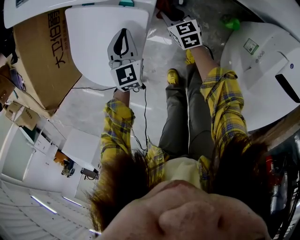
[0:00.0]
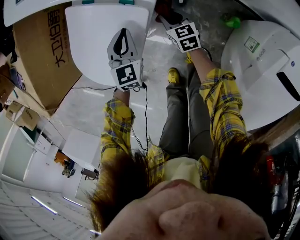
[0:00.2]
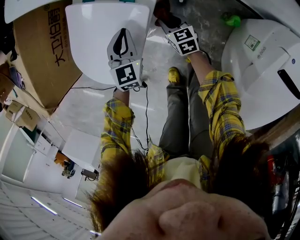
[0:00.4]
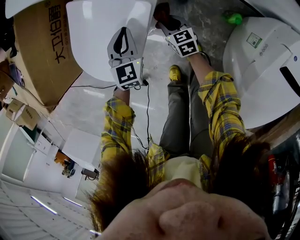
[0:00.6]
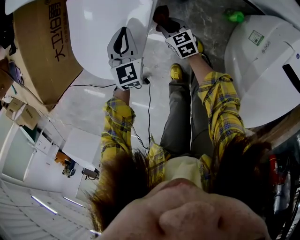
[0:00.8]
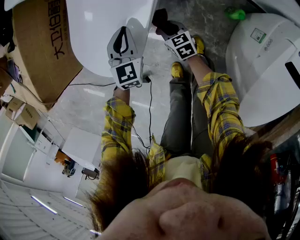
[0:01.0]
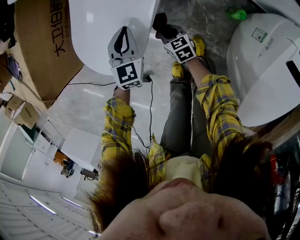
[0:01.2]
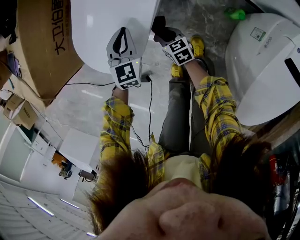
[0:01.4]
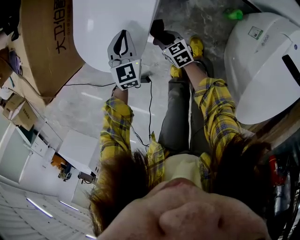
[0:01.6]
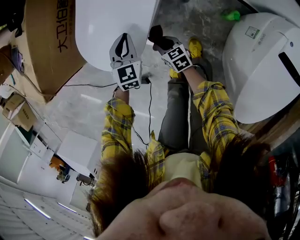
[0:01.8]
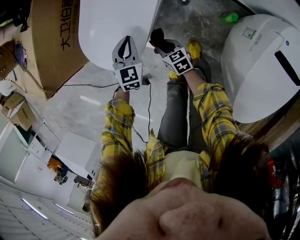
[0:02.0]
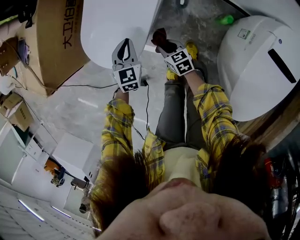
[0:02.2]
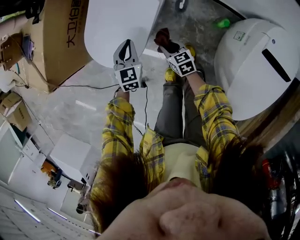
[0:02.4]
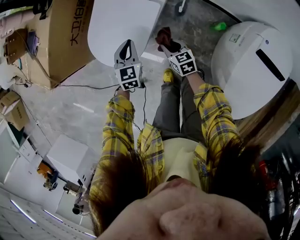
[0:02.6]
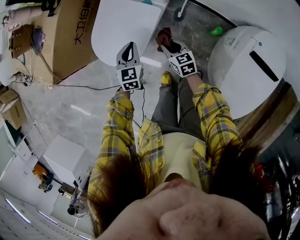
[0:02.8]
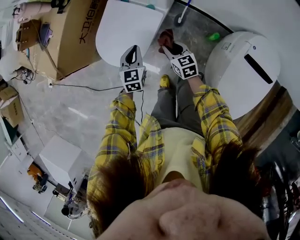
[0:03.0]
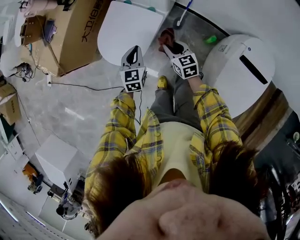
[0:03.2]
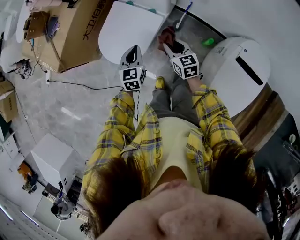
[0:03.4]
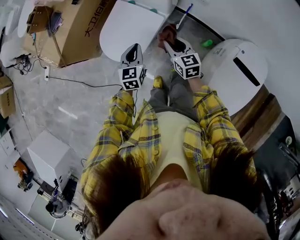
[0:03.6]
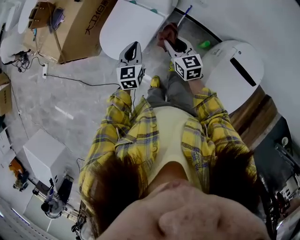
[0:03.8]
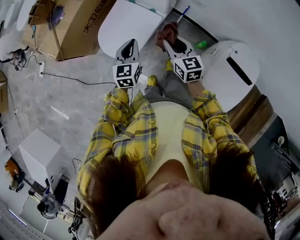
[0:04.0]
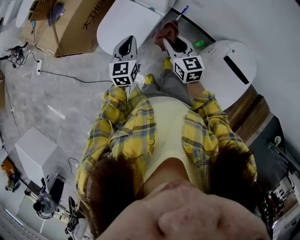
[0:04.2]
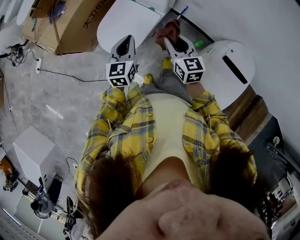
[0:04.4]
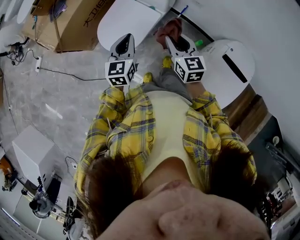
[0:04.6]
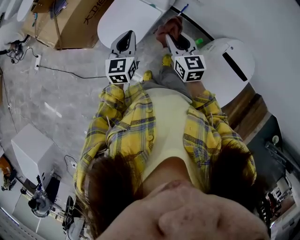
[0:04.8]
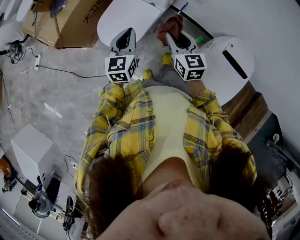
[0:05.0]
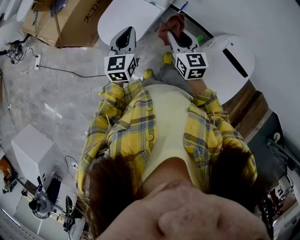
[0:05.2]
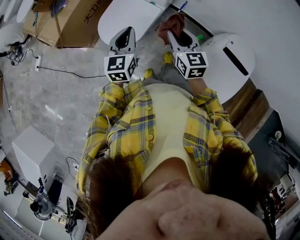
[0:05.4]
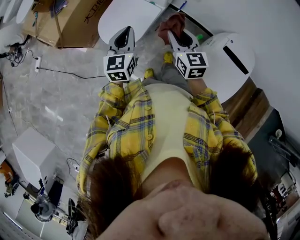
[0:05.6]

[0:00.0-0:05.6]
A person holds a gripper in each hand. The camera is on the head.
0.0 to 1.4 s: The right gripper is displaced to the left and backward by some 20 cm. The left gripper heads to the left, covering some 5 cm.
1.4 to 2.8 s: The right gripper heads upward, covering approximately 20 cm; the left gripper goes some 10 cm upward and backward.
2.8 to 4.2 s: Both grippers move upward, some 25 cm.
4.2 to 5.6 s: The left gripper goes about 5 cm upward, while the right gripper travels upward and backward by approximately 5 cm.

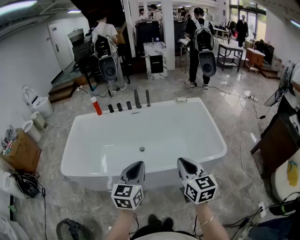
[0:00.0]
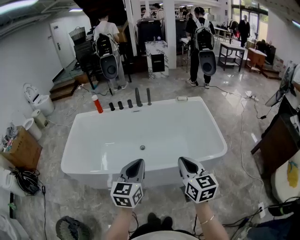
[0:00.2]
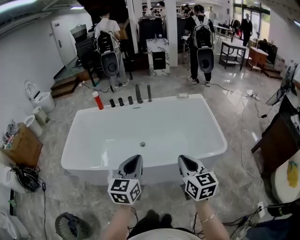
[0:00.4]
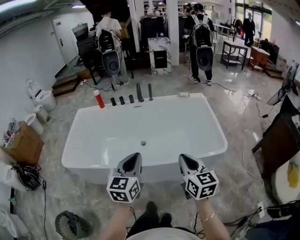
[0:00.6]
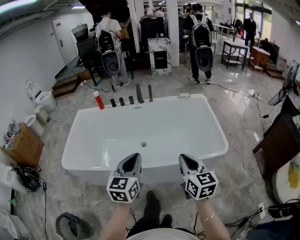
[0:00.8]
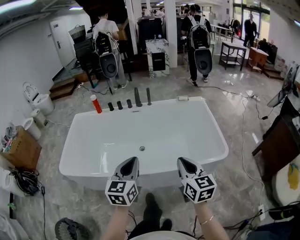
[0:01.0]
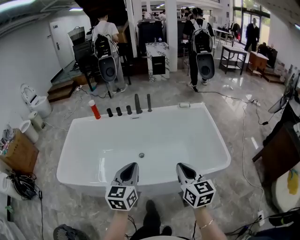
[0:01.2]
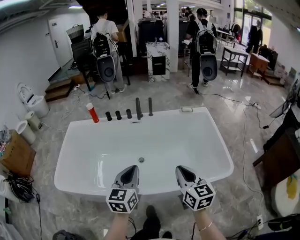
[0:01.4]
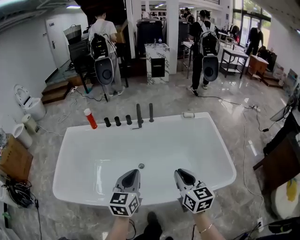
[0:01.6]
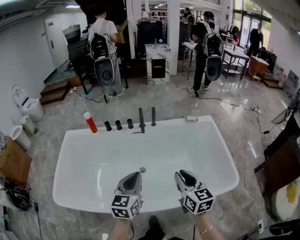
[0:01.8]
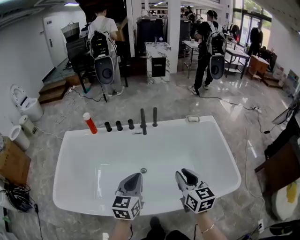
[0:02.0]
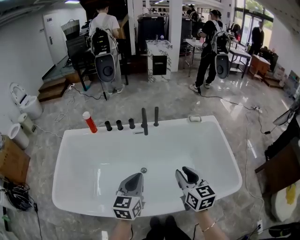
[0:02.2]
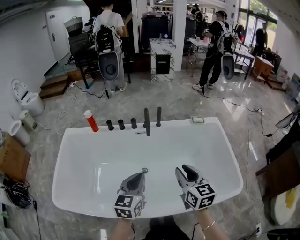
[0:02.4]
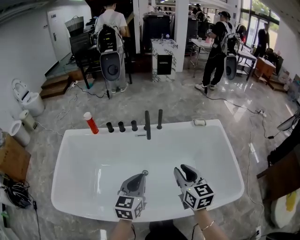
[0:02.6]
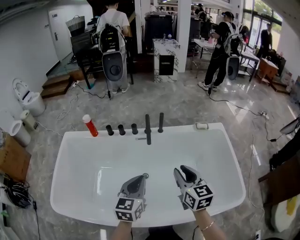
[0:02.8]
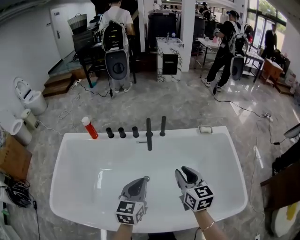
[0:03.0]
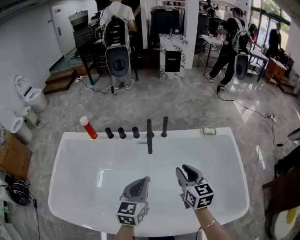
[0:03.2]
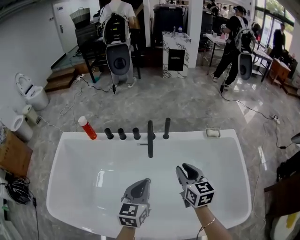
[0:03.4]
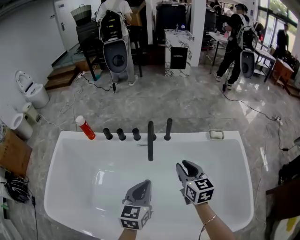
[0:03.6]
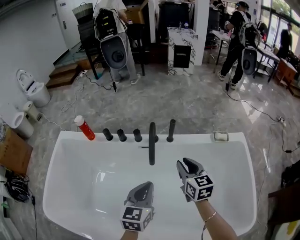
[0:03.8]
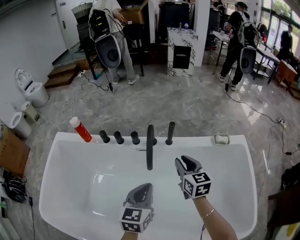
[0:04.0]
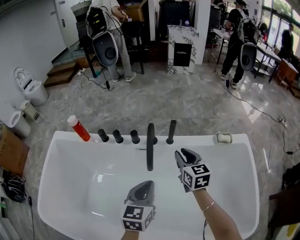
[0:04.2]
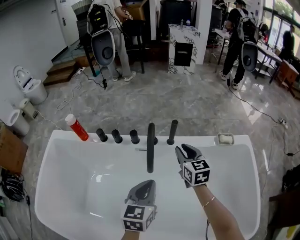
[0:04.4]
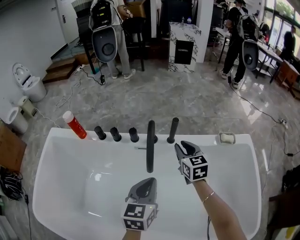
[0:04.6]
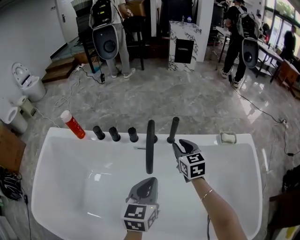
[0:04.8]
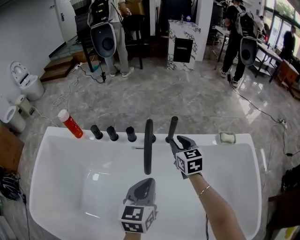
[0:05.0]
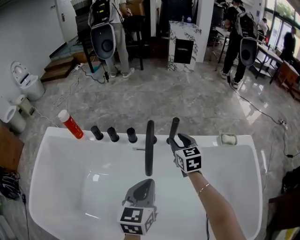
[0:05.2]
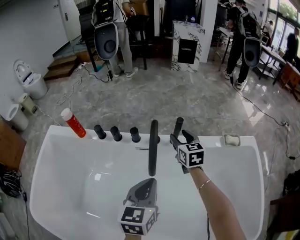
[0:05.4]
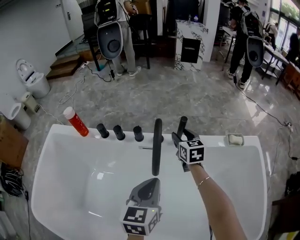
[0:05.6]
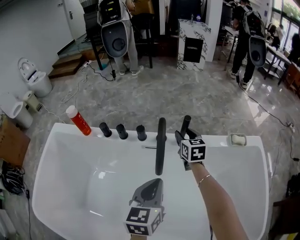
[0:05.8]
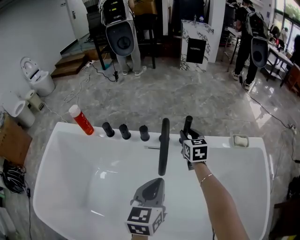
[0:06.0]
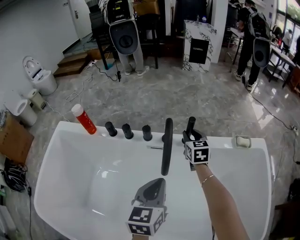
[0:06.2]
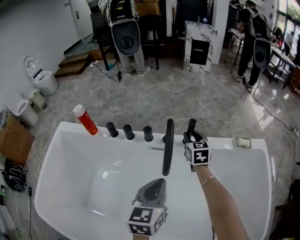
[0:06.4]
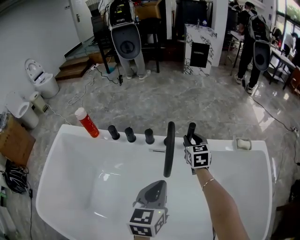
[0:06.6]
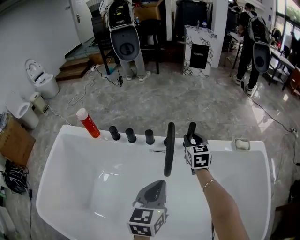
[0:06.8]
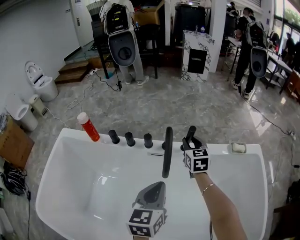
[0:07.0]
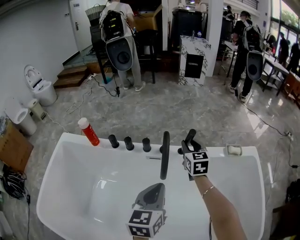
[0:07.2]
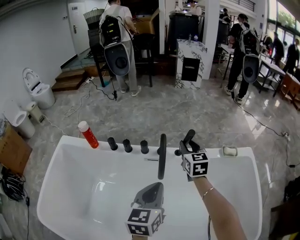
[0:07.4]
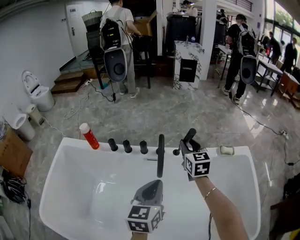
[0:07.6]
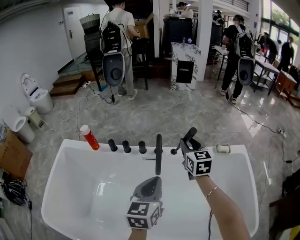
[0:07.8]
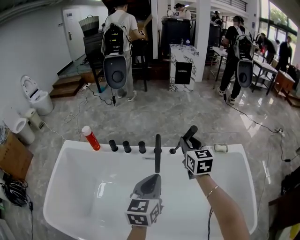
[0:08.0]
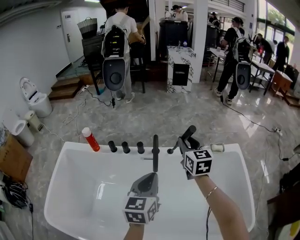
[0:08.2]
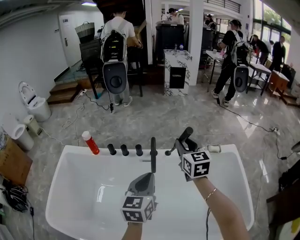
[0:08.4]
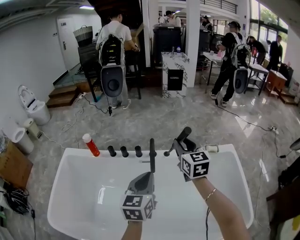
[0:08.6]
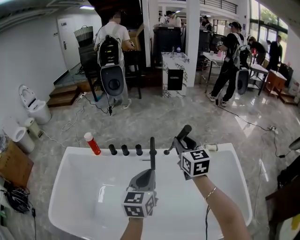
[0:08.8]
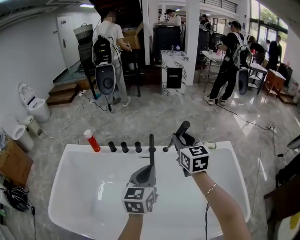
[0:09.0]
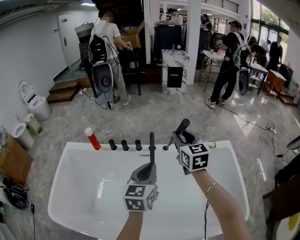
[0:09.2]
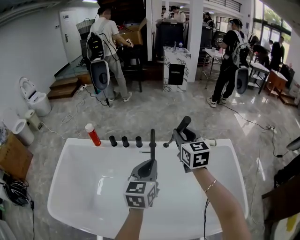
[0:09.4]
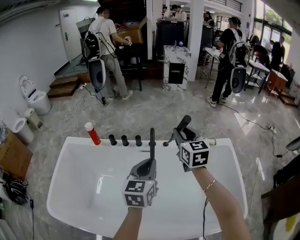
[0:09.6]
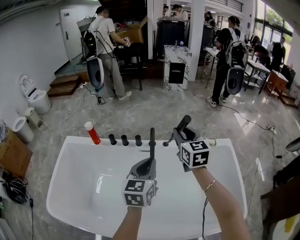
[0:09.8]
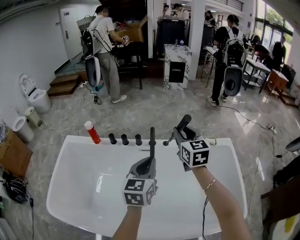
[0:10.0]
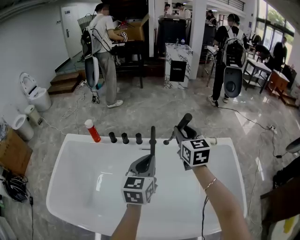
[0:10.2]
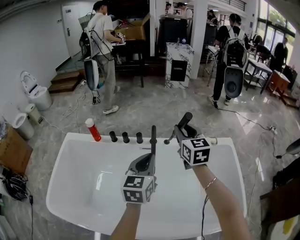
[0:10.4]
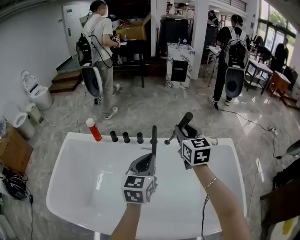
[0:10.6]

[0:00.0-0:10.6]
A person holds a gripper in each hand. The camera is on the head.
0.0 to 1.6 s: Both grippers travel together forward, approximately 30 cm.
1.6 to 3.0 s: Both grippers move forward, about 30 cm.
3.0 to 4.6 s: Both grippers travel together forward and downward, about 40 cm.
4.6 to 6.0 s: The right gripper heads forward and downward, covering some 10 cm, and opens, then closes once more.
6.0 to 7.6 s: The left gripper travels upward and backward by some 15 cm. The right gripper shifts approximately 20 cm upward and backward.
7.6 to 9.0 s: Both grippers travel together upward and backward, about 25 cm.
9.0 to 10.6 s: The grippers stay close to where they were, moving slightly.

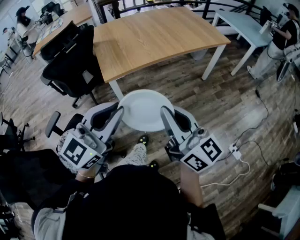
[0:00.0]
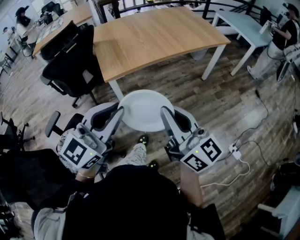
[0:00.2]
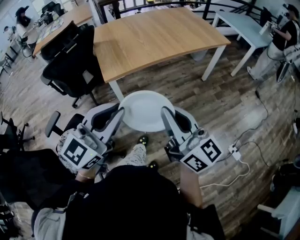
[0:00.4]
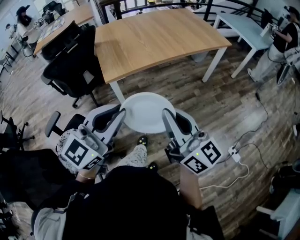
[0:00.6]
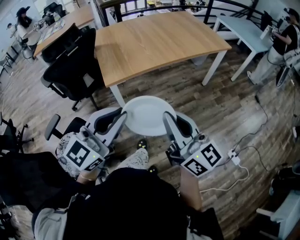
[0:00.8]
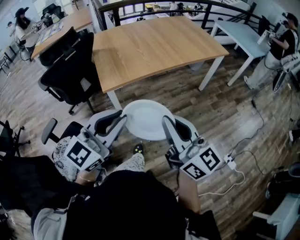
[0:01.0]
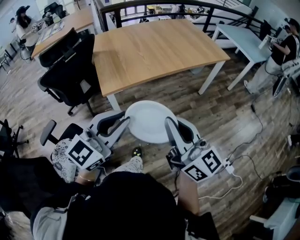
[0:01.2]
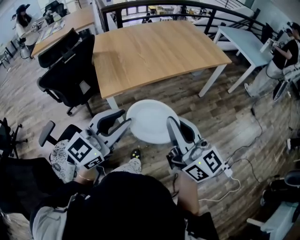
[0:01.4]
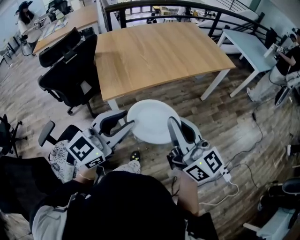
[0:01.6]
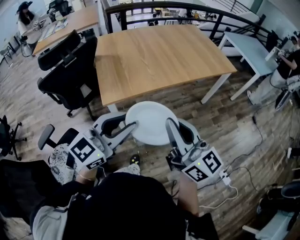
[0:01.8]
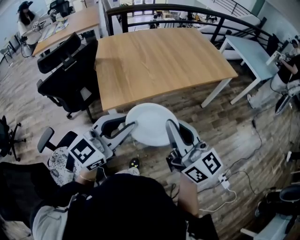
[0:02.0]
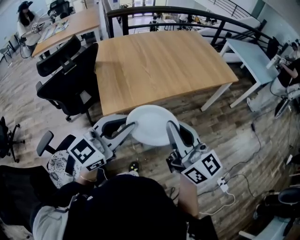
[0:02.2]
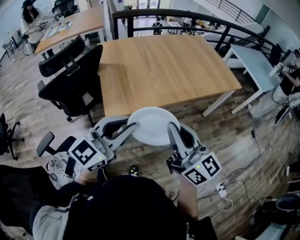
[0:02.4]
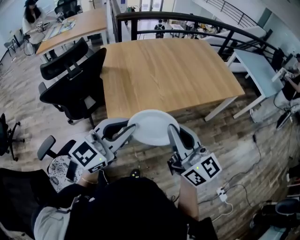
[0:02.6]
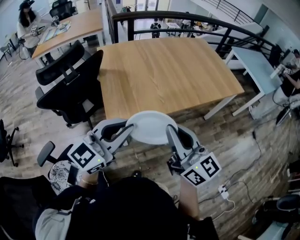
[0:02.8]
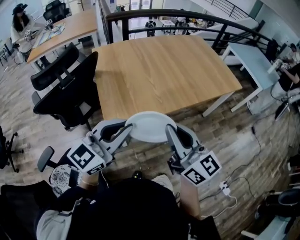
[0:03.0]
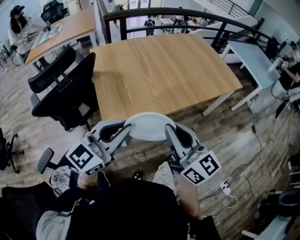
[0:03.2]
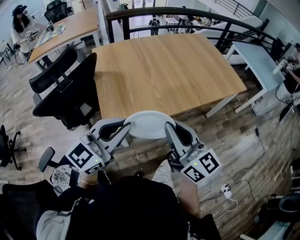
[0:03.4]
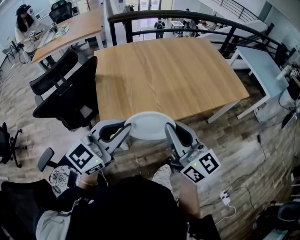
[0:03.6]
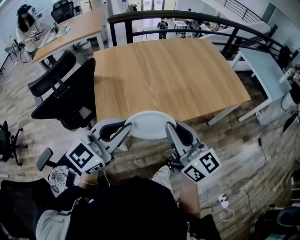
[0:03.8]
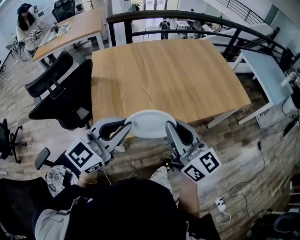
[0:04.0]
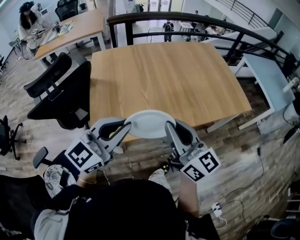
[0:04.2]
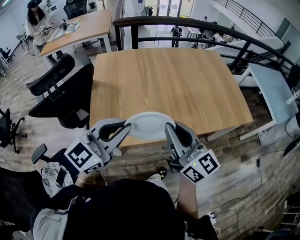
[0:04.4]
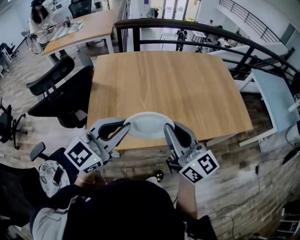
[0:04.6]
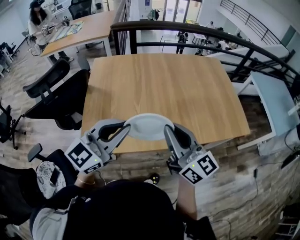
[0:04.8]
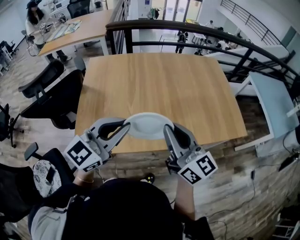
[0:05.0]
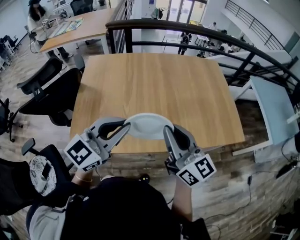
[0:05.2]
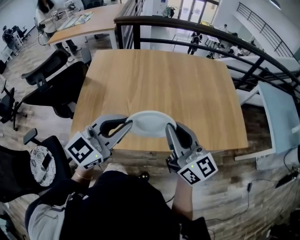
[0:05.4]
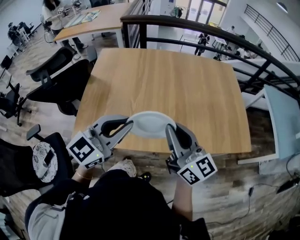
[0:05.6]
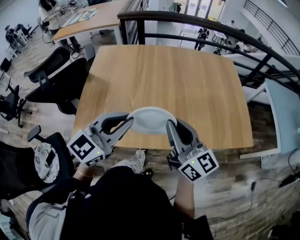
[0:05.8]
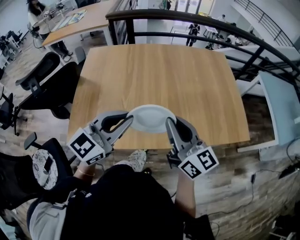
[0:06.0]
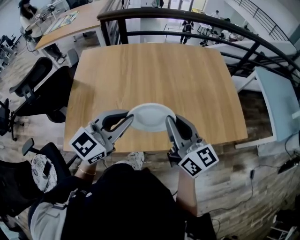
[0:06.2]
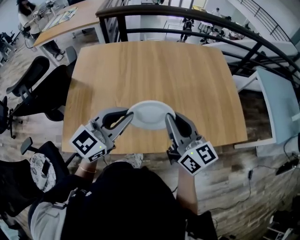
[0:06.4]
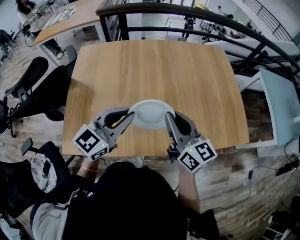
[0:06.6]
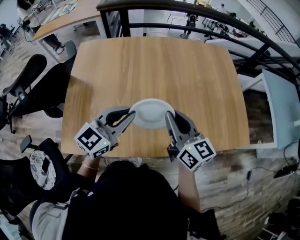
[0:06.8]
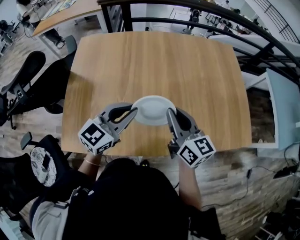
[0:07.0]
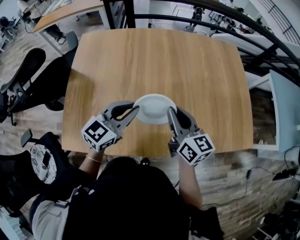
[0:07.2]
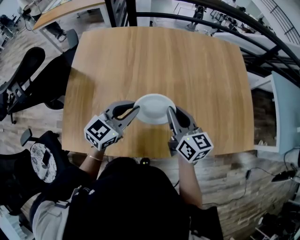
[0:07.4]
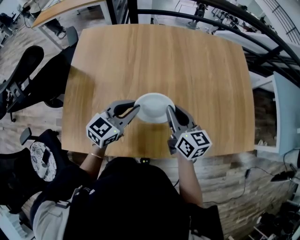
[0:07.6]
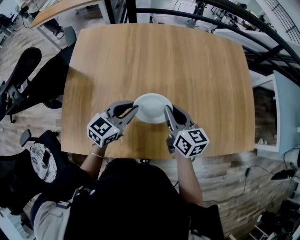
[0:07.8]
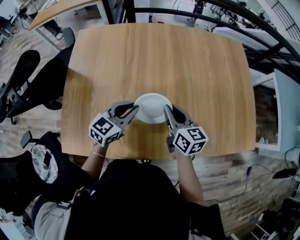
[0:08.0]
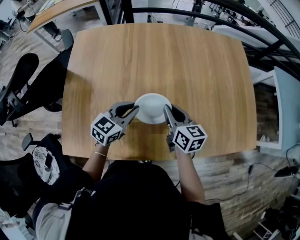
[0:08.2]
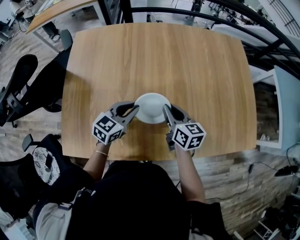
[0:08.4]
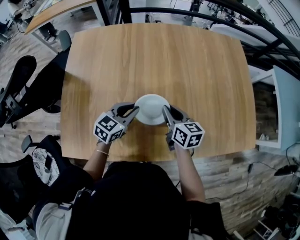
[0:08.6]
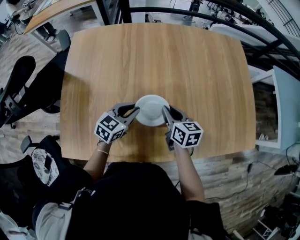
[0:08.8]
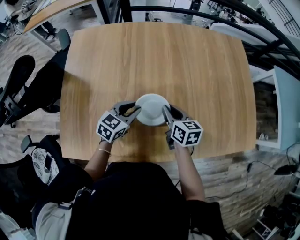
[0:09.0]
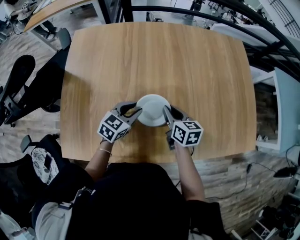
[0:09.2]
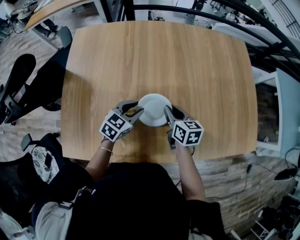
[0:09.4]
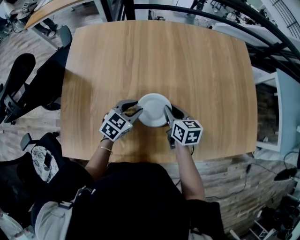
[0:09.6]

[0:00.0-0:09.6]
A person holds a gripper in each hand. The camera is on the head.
0.0 to 1.6 s: The grippers both shift forward by roughly 10 cm.
1.6 to 3.2 s: Both grippers travel together forward and to the left, some 20 cm.
3.2 to 4.8 s: Both grippers travel together forward and to the right, about 25 cm.
4.8 to 6.4 s: Both grippers move forward, to the right and downward, roughly 20 cm.
6.4 to 8.0 s: The right gripper goes roughly 20 cm downward, forward and to the left, and changes its angle by some 20 degrees. Meanwhile the left gripper moves downward and forward, about 20 cm.
8.0 to 9.6 s: The two grippers go some 10 cm downward.
